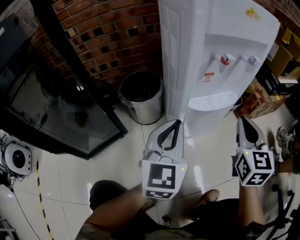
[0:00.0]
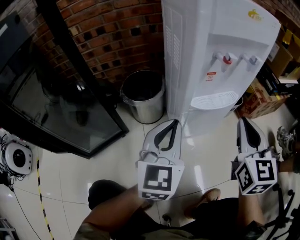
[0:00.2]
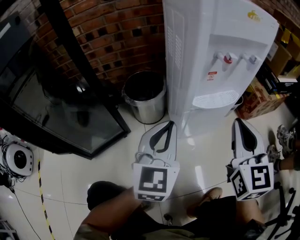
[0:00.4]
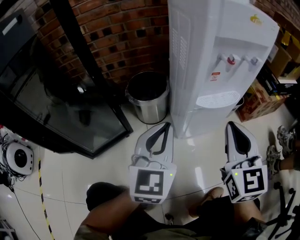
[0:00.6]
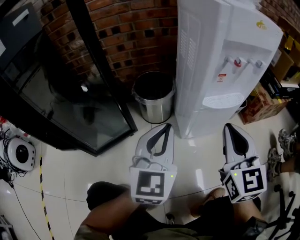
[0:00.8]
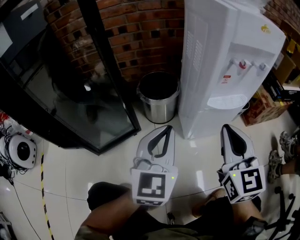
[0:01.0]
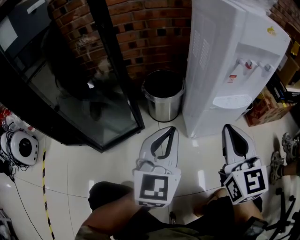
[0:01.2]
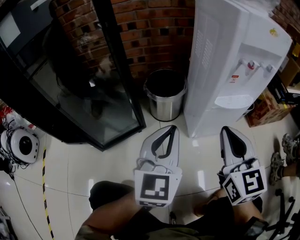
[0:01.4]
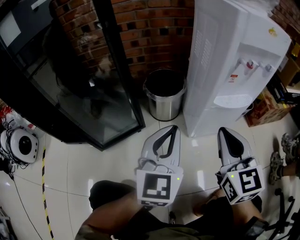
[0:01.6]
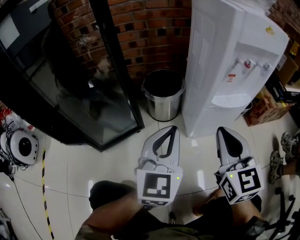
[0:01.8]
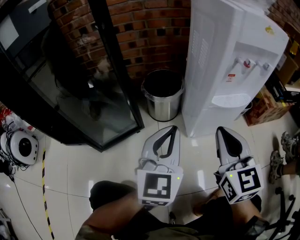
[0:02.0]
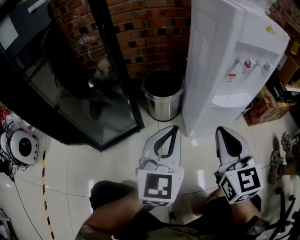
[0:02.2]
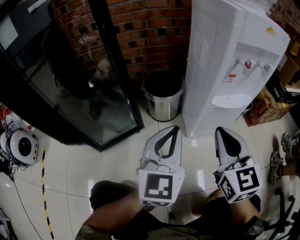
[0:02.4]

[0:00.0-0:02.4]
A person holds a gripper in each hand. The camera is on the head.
0:00.0 to 0:01.2: Both grippers move to the left and backward, about 15 cm.
0:01.2 to 0:02.4: There are only small adjustments of the grippers.

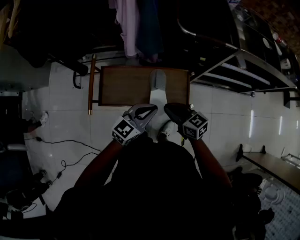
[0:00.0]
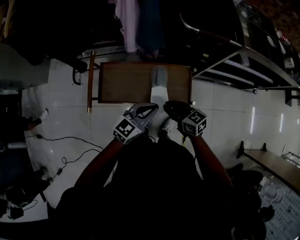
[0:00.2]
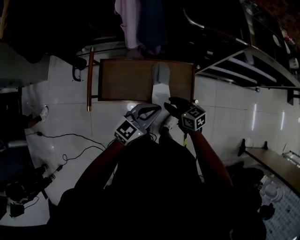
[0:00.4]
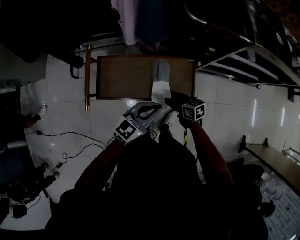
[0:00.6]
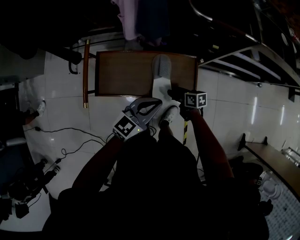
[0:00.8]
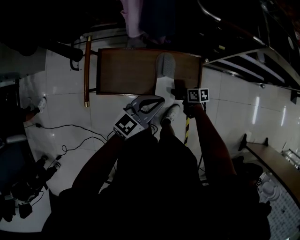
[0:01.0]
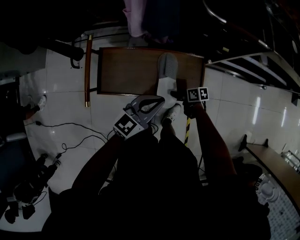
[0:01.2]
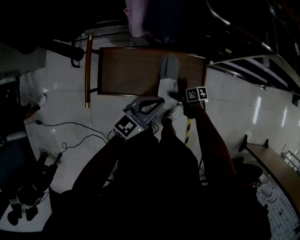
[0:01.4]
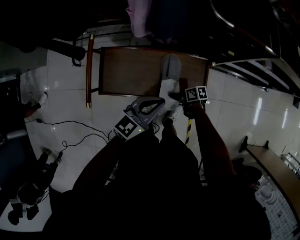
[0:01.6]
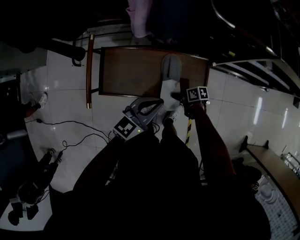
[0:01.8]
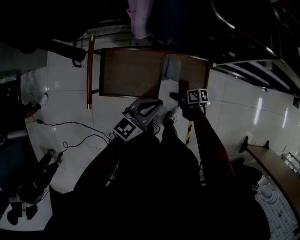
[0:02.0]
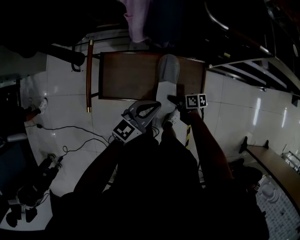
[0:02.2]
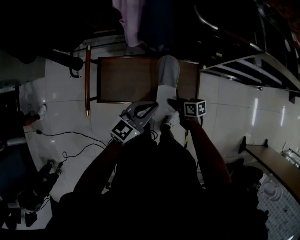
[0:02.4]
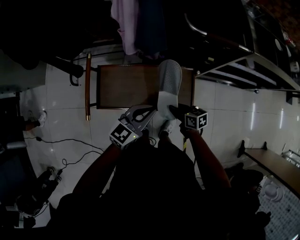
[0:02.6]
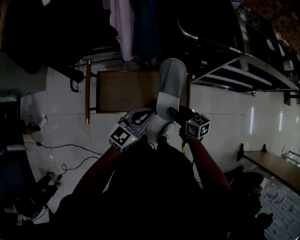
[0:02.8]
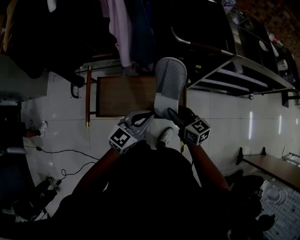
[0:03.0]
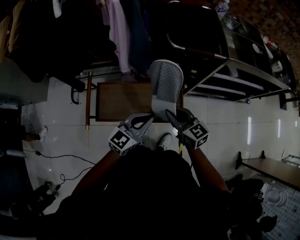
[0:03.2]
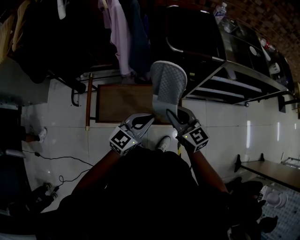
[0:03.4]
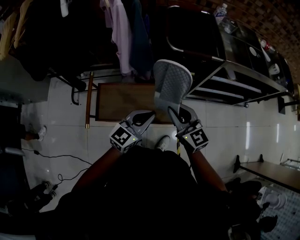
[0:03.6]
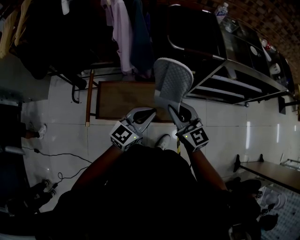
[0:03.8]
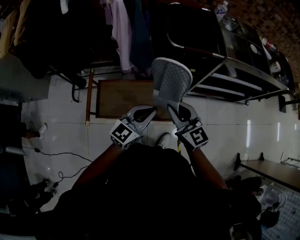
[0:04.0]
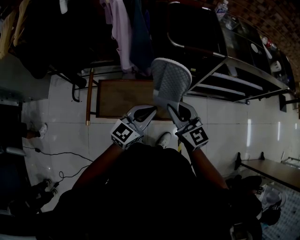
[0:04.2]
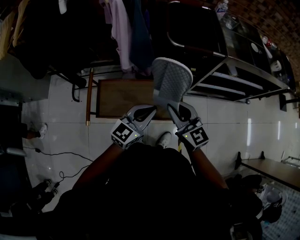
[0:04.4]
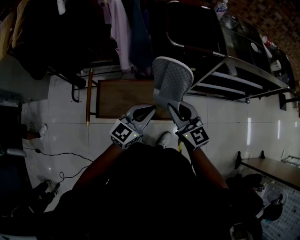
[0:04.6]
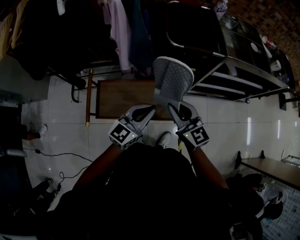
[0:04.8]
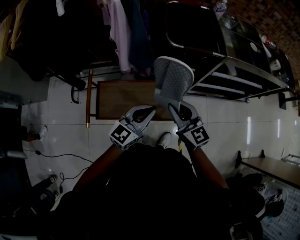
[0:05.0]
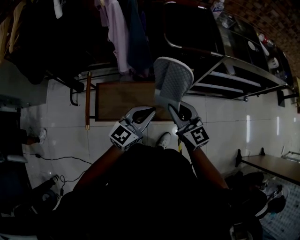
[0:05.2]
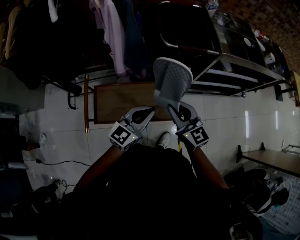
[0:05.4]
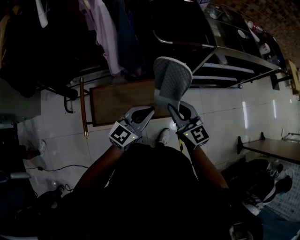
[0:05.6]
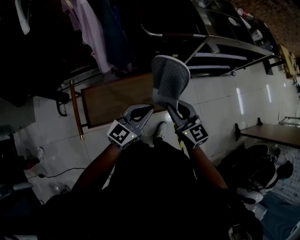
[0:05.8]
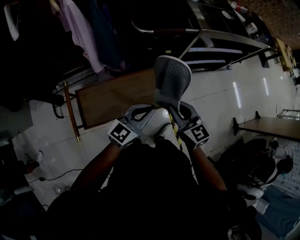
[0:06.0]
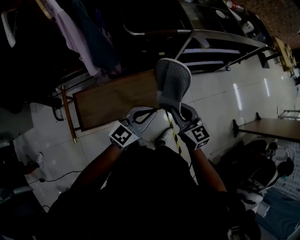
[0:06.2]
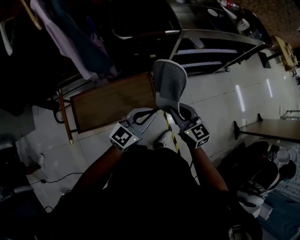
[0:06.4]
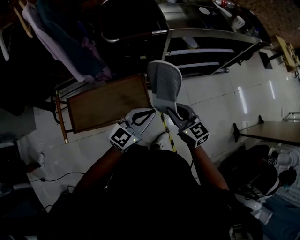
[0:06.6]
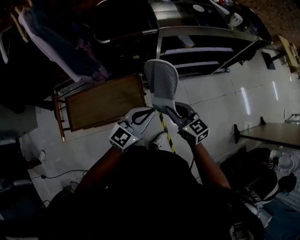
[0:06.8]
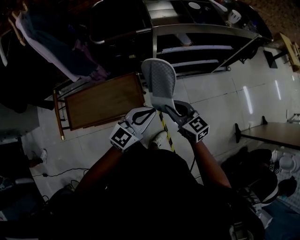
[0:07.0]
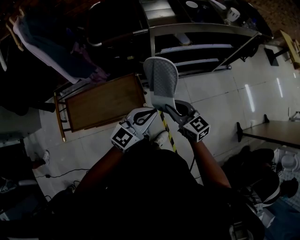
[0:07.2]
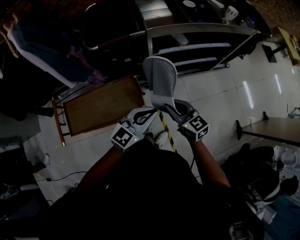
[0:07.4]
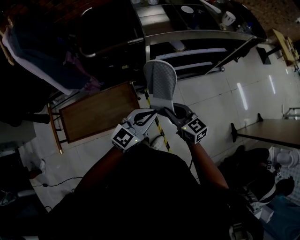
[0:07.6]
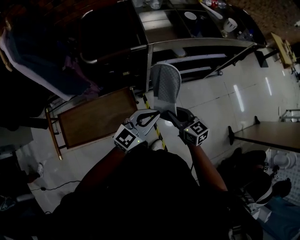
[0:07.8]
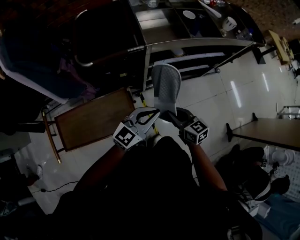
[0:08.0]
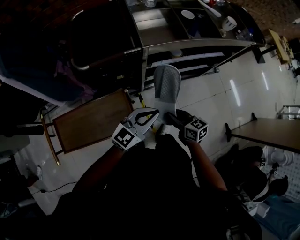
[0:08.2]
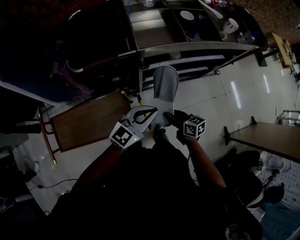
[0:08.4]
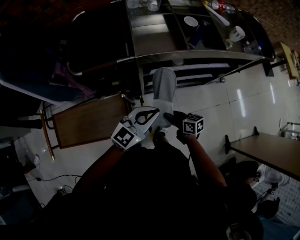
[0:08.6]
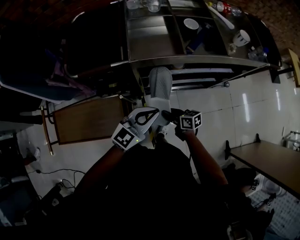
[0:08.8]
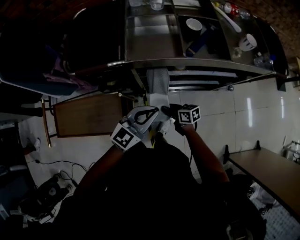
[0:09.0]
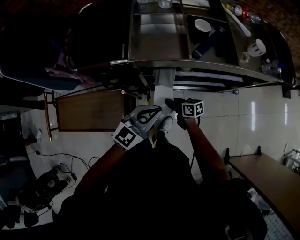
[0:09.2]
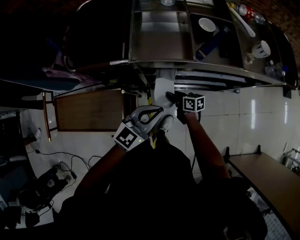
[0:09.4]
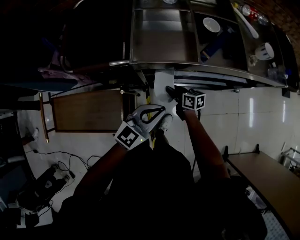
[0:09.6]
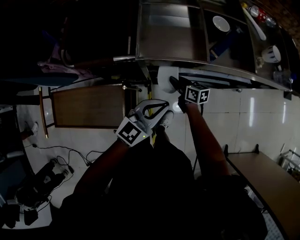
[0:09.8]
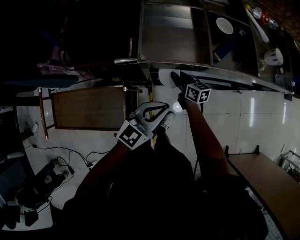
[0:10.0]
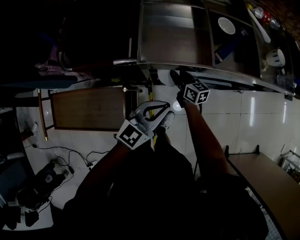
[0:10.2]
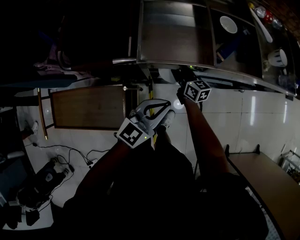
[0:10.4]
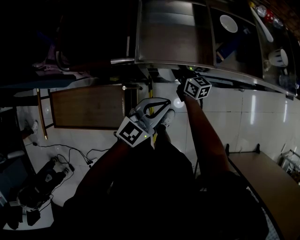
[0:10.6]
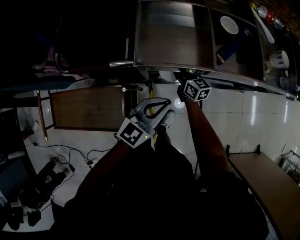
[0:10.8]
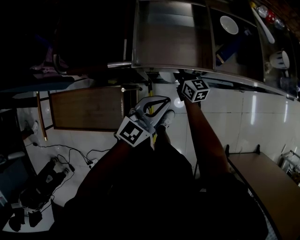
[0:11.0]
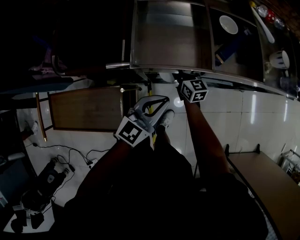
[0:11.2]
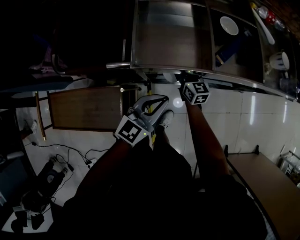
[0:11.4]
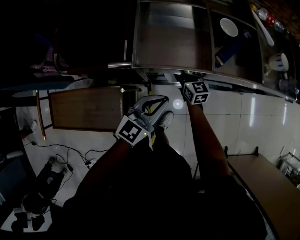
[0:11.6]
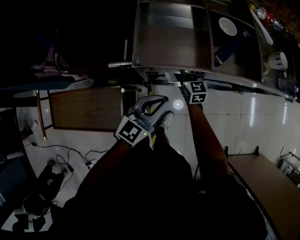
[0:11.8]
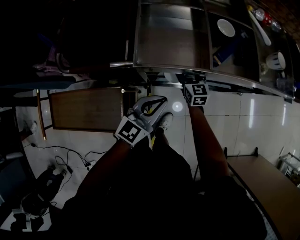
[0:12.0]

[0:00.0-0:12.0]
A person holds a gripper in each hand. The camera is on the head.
0:00.0 to 0:01.6: The right gripper heads downward, covering about 30 cm, rolls clockwise, seen from behind, by some 40 degrees, and opens up. The left gripper moves downward, some 5 cm.
0:01.6 to 0:03.0: The right gripper heads upward, covering roughly 30 cm, turns by about 60 degrees, and closes its fingers; the left gripper heads upward, covering approximately 10 cm.
0:03.0 to 0:04.4: The right gripper shifts about 10 cm upward, and swivels about 30 degrees.
0:04.4 to 0:06.0: The right gripper shifts some 10 cm to the right and downward, while the left gripper shifts by roughly 5 cm.
0:06.0 to 0:07.6: The grippers both shift to the right by some 25 cm.
0:07.6 to 0:09.0: The right gripper shifts some 25 cm downward, forward and to the right, and rotates approximately 40 degrees; the left gripper shifts about 20 cm forward and to the right.
0:09.0 to 0:10.4: The left gripper moves forward, some 5 cm. The right gripper travels forward by roughly 20 cm, and rotates approximately 30 degrees.
0:10.4 to 0:12.0: The right gripper ends up about 5 cm from where it was, rotates about 30 degrees, and opens up.

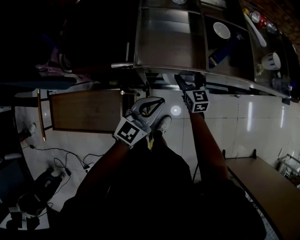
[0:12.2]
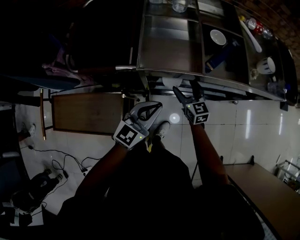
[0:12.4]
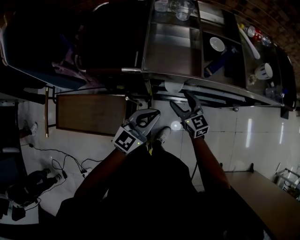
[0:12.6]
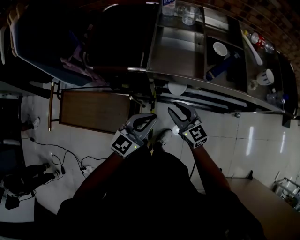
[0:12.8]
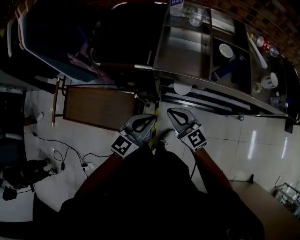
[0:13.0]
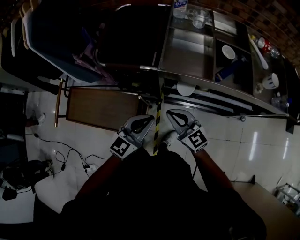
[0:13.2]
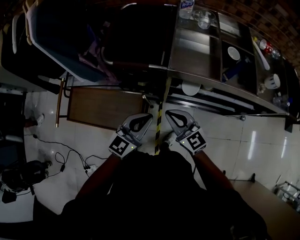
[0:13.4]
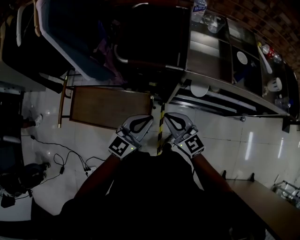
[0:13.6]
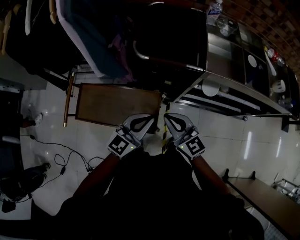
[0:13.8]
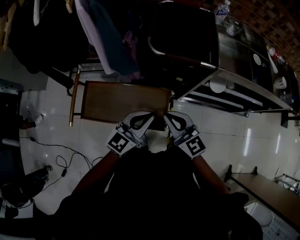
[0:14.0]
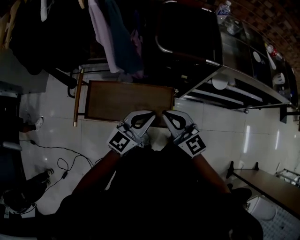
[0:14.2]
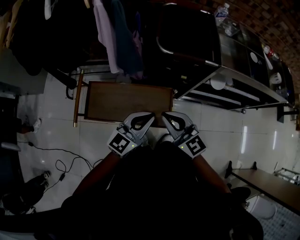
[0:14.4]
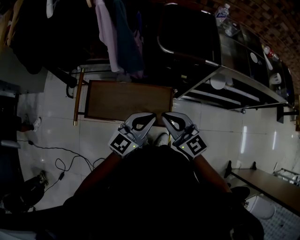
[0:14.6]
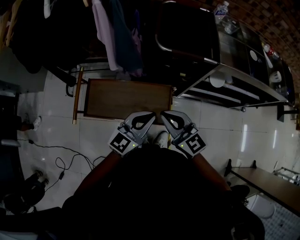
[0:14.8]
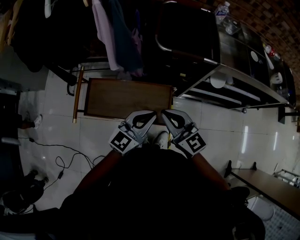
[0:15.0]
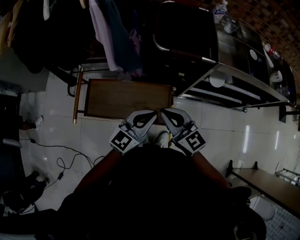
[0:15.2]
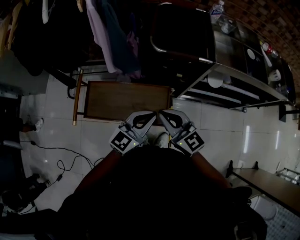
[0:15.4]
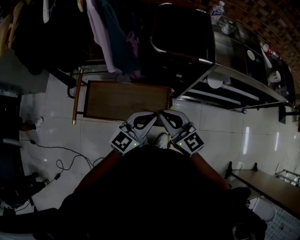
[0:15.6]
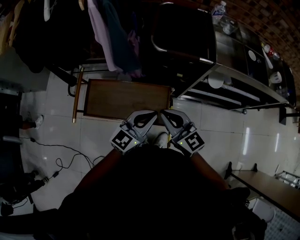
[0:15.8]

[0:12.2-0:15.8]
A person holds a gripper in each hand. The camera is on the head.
0:12.2 to 0:14.0: The right gripper heads to the left, backward and upward, covering approximately 50 cm, rotates roughly 30 degrees, and closes up. Meanwhile the left gripper shifts some 35 cm to the left.

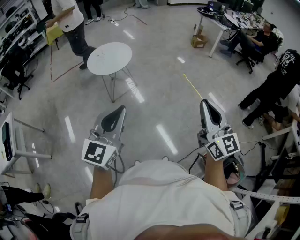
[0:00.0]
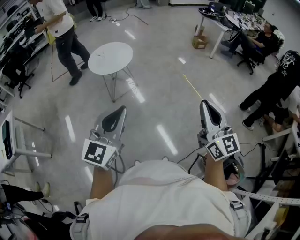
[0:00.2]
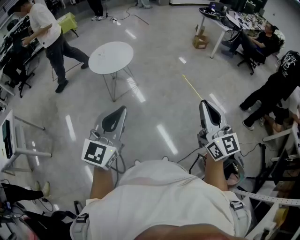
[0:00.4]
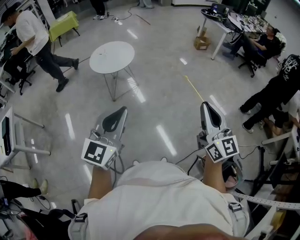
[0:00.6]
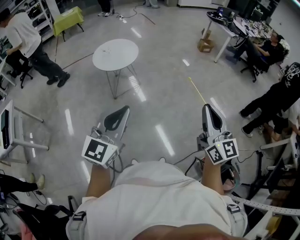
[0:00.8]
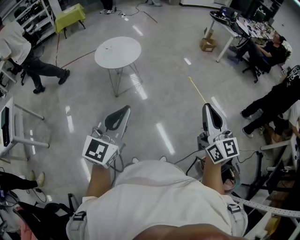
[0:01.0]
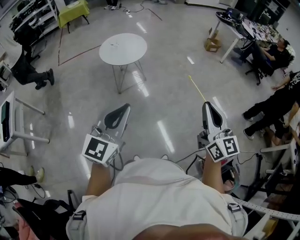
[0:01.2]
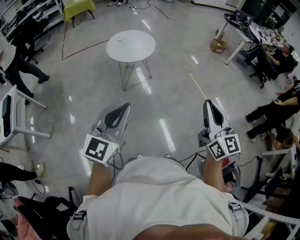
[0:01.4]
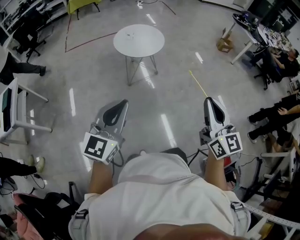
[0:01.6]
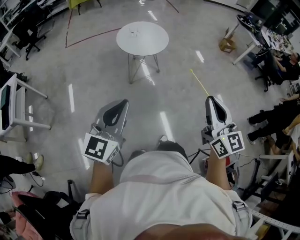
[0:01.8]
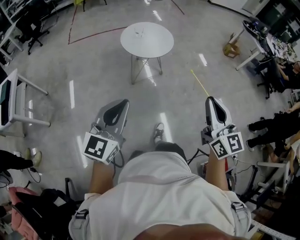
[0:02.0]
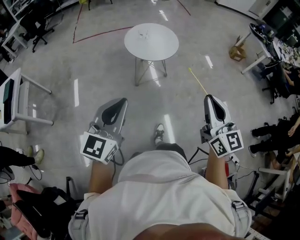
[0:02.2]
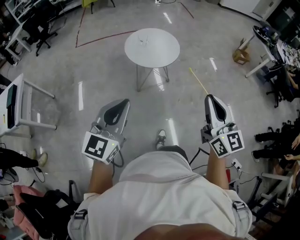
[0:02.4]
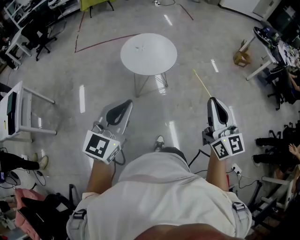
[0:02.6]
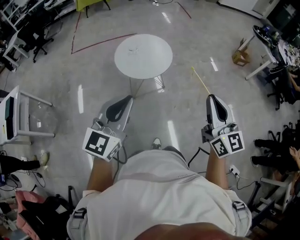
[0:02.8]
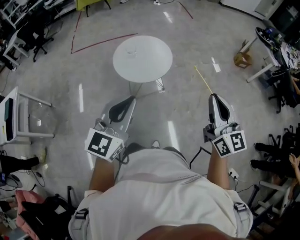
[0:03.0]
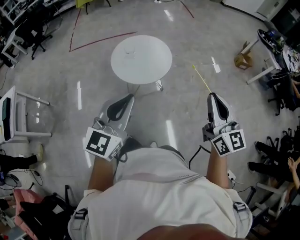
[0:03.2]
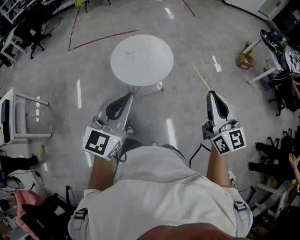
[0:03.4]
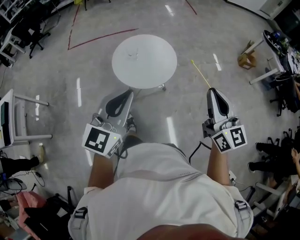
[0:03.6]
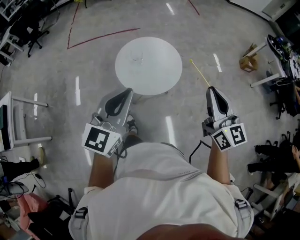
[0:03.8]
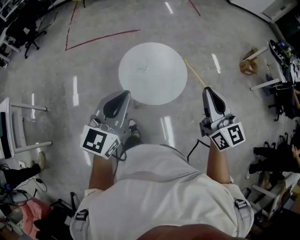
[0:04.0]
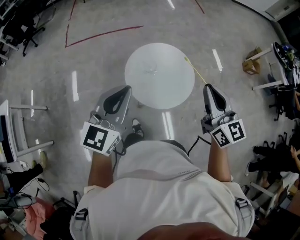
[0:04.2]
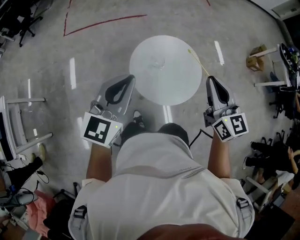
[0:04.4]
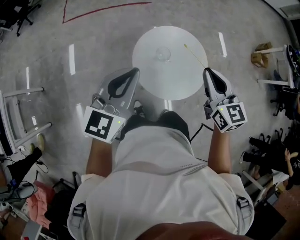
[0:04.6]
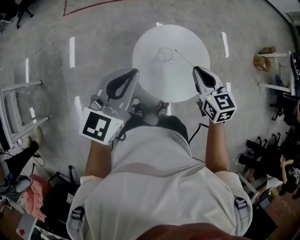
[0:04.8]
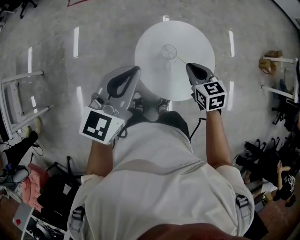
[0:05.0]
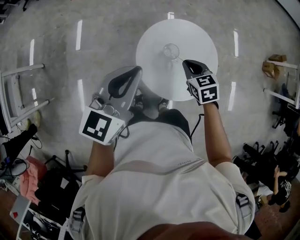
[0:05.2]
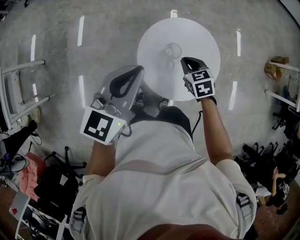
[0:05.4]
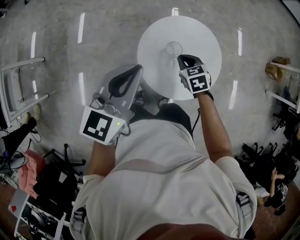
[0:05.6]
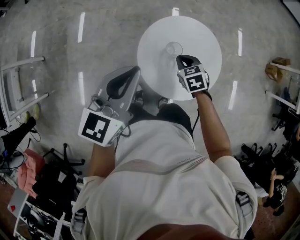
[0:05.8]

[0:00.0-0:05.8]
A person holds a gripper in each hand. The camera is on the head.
0:00.0 to 0:01.4: The grippers both shift to the left by about 15 cm.
0:01.4 to 0:02.8: Both grippers move forward, about 35 cm.
0:02.8 to 0:04.4: The two grippers travel together, forward and to the left, roughly 60 cm.
0:04.4 to 0:05.8: The right gripper is displaced downward and forward by approximately 40 cm, and angles its fingers downward, by some 50 degrees, while the left gripper is displaced forward and downward by roughly 15 cm.
